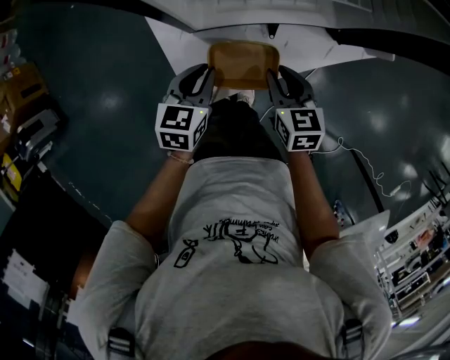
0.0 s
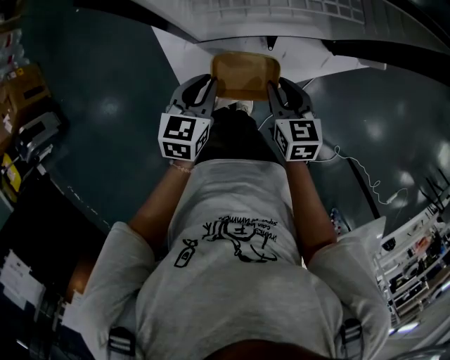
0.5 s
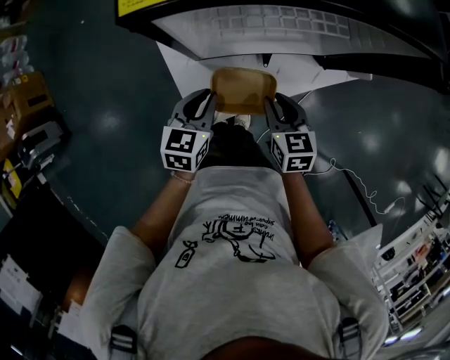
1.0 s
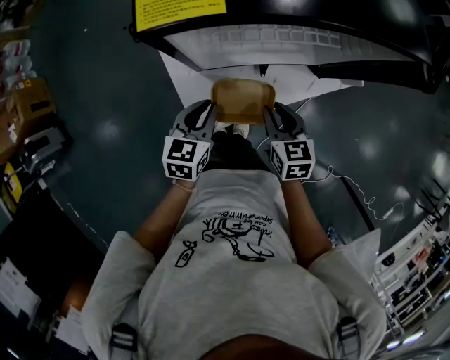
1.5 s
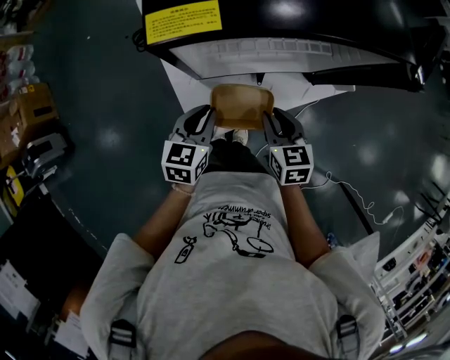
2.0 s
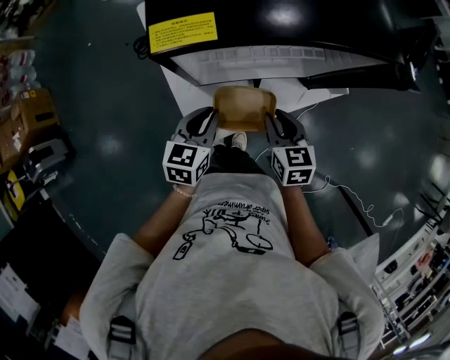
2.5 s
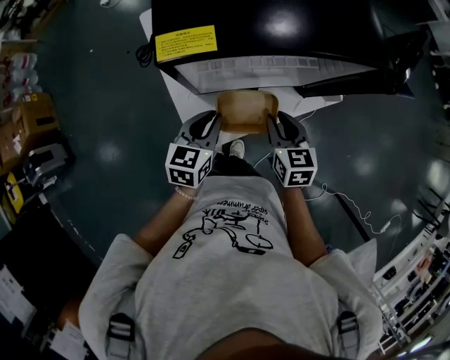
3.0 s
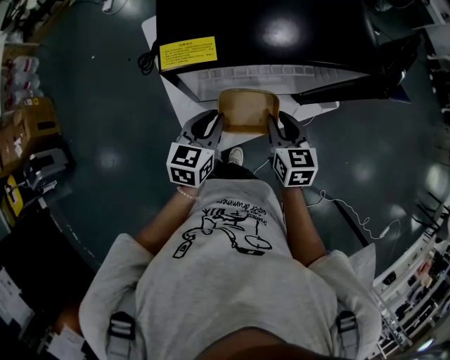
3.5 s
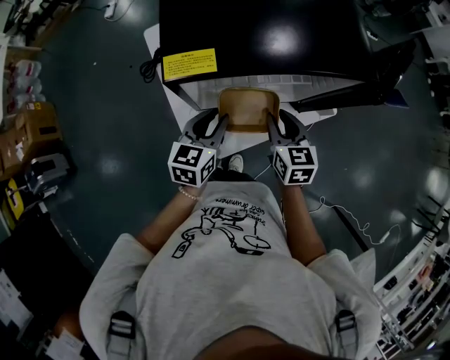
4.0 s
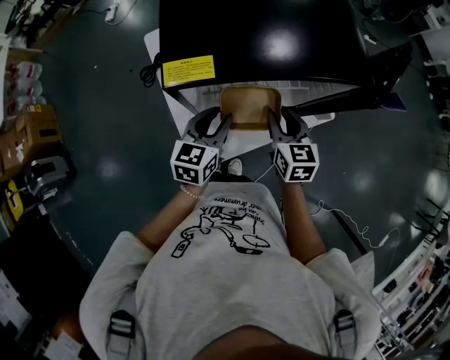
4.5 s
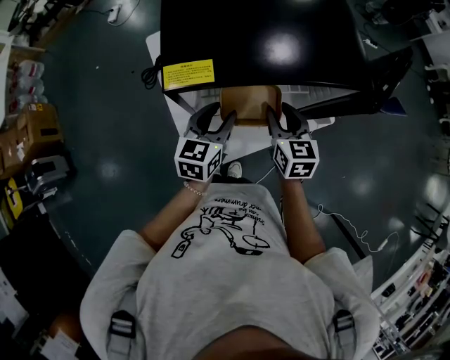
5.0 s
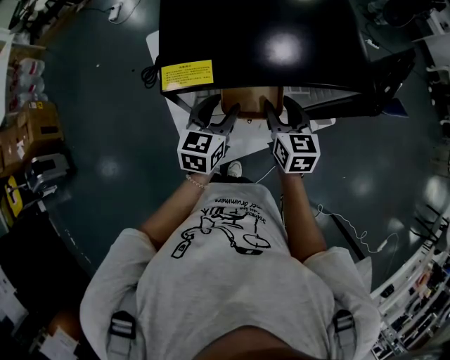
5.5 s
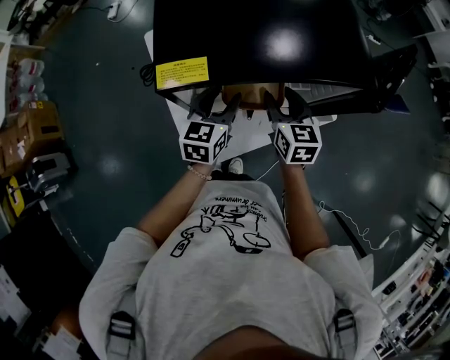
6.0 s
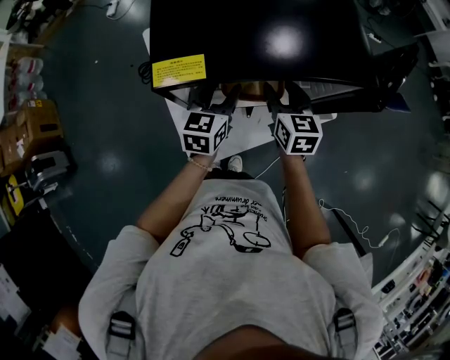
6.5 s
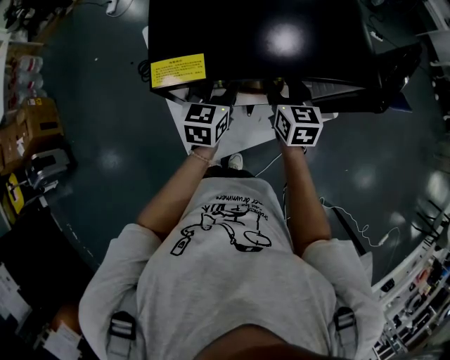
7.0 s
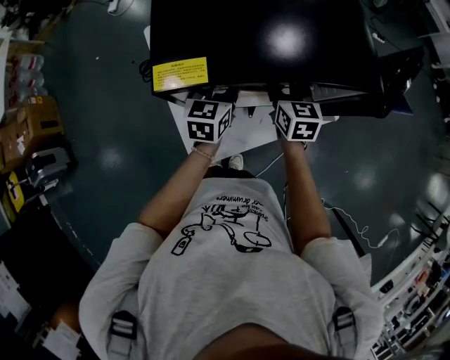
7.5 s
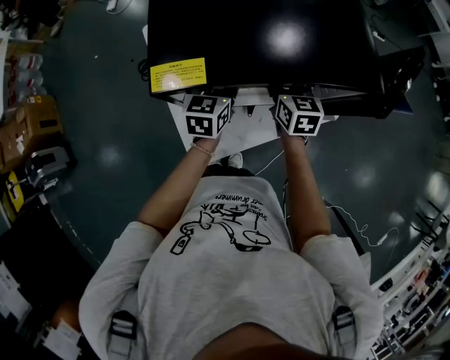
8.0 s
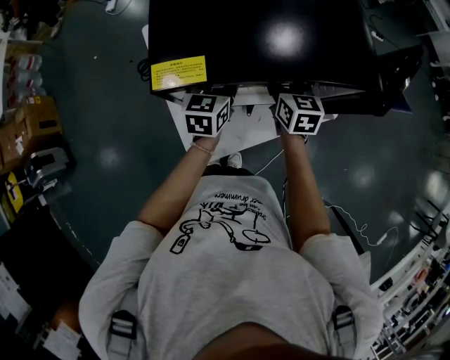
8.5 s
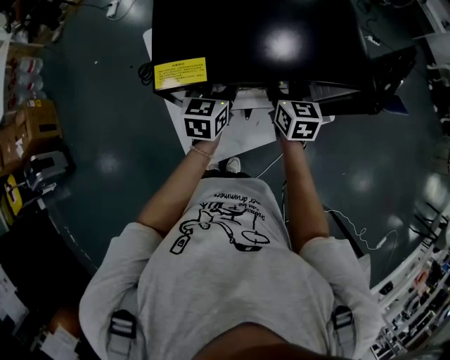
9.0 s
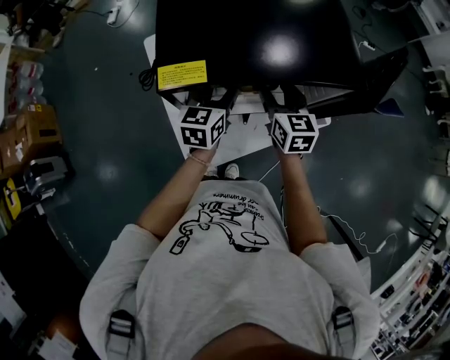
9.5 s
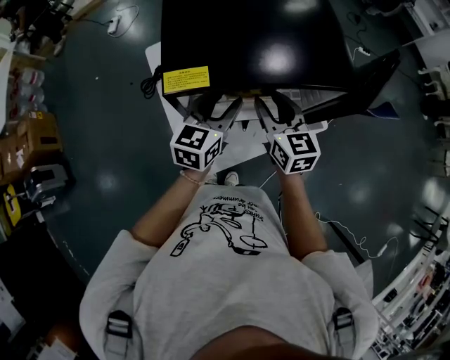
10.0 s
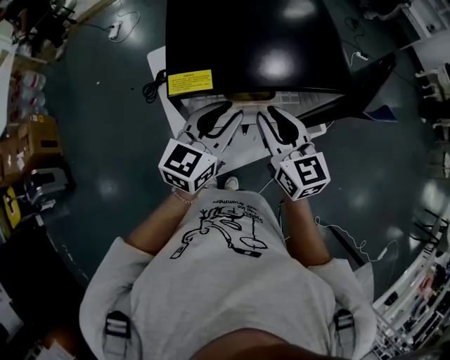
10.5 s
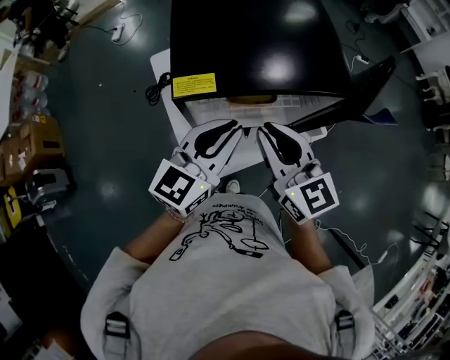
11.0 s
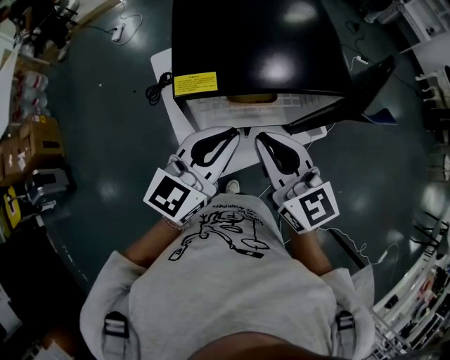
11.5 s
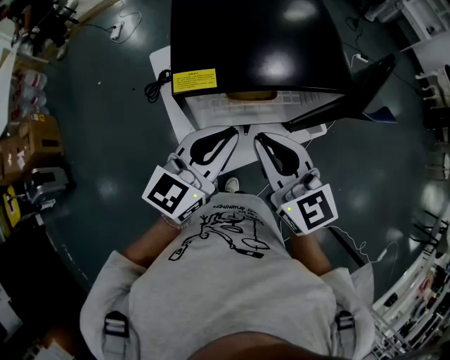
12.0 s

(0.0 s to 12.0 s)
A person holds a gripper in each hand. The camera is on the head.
0.0 s - 2.0 s: The grippers both shift upward by roughly 10 cm.
2.0 s - 4.0 s: The two grippers go about 10 cm upward and forward.
4.0 s - 6.0 s: The grippers both shift forward by roughly 10 cm. The right gripper opens up; the left gripper opens its fingers.
6.0 s - 8.0 s: Both grippers travel together forward, some 5 cm.
8.0 s - 10.0 s: Both grippers travel together upward and backward, approximately 10 cm.
10.0 s - 12.0 s: The right gripper goes about 15 cm backward and upward, and closes. Meanwhile the left gripper goes approximately 15 cm upward and backward, and closes up.

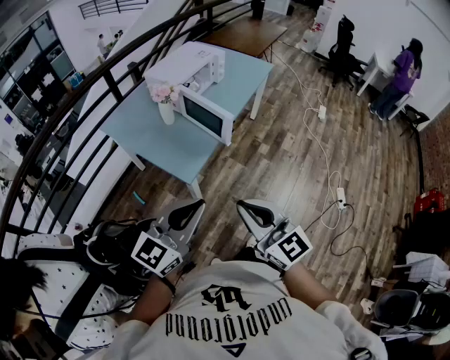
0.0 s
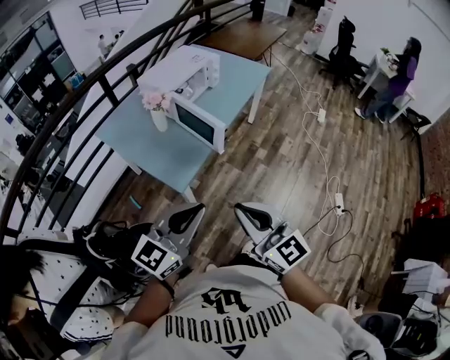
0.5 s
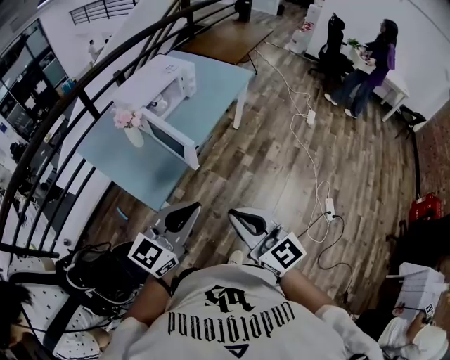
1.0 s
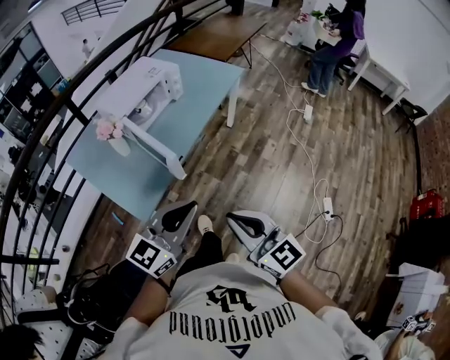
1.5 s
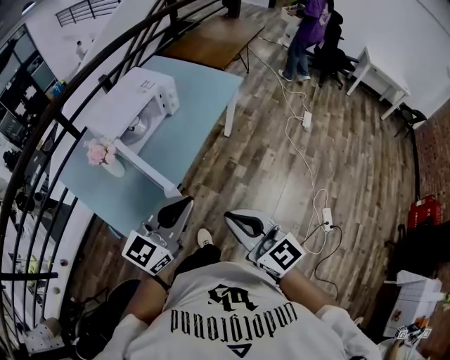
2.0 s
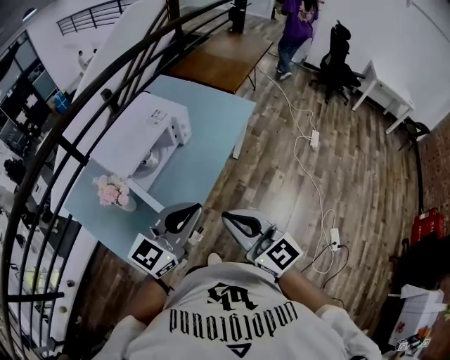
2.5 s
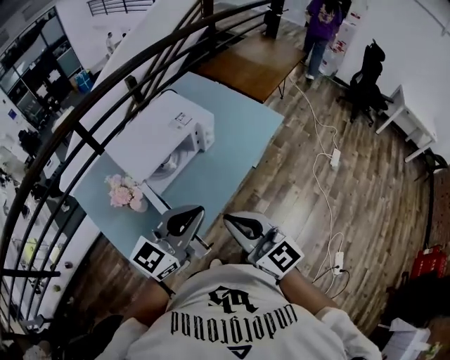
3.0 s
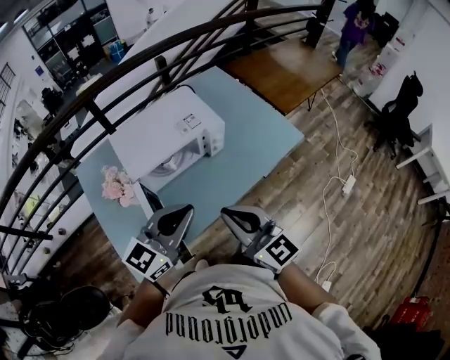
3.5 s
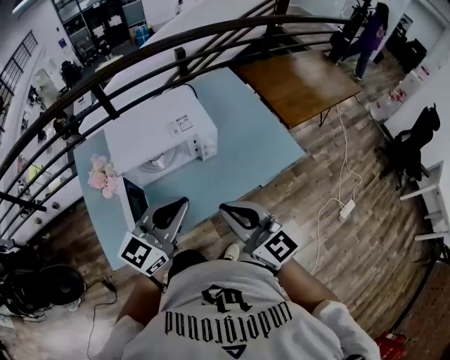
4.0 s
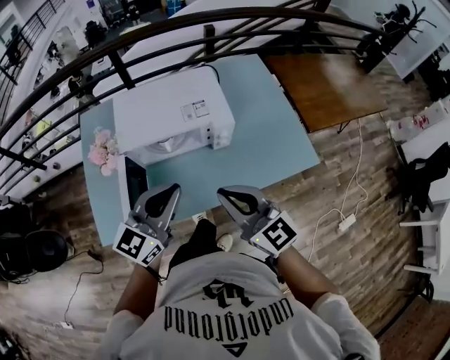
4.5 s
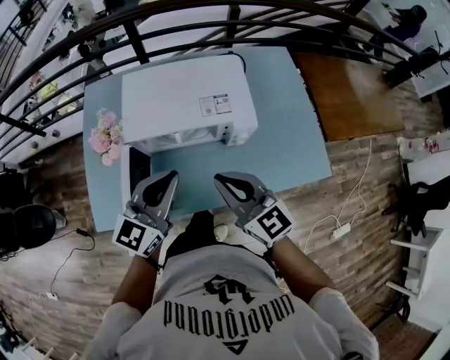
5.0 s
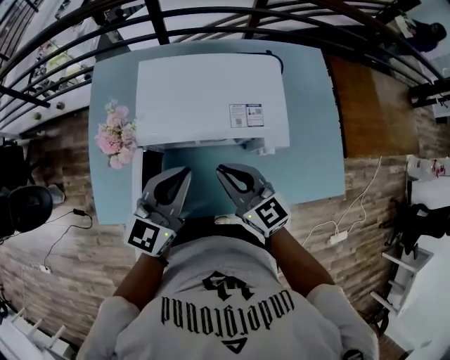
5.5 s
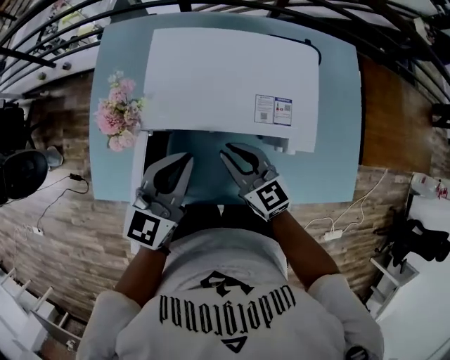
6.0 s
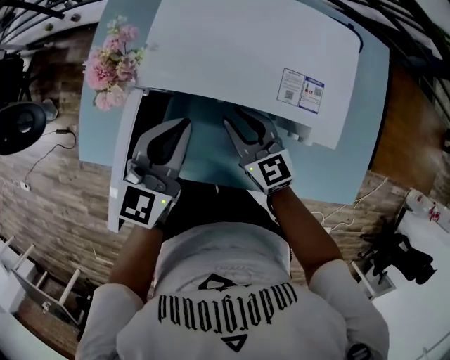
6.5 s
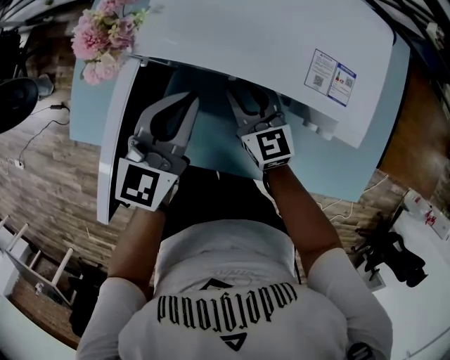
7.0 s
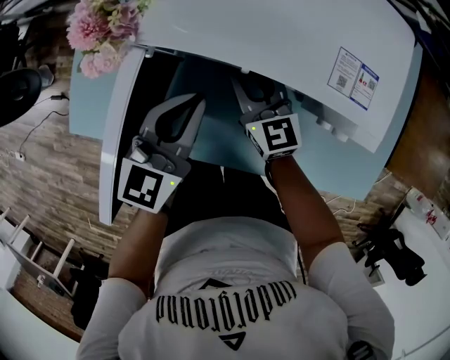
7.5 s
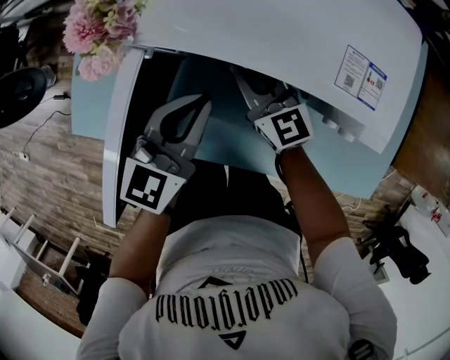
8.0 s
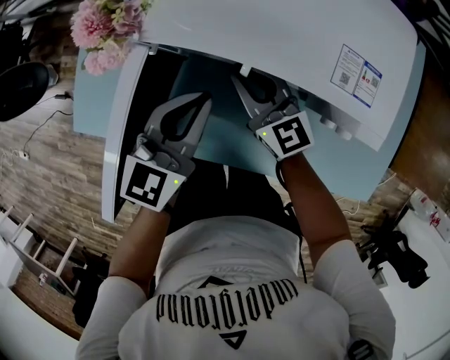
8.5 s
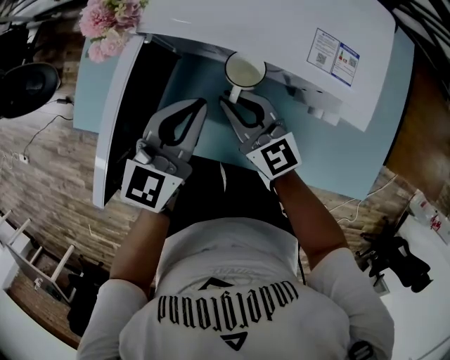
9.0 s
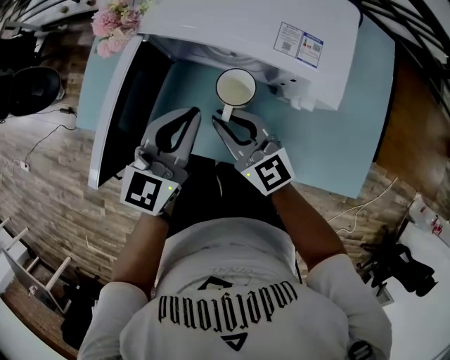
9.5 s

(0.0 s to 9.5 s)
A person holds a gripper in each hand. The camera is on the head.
0.0 s - 2.0 s: Both grippers travel together forward and to the right, some 35 cm.
2.0 s - 4.0 s: The right gripper moves about 40 cm, and rotates roughly 30 degrees. Meanwhile the left gripper changes place by some 35 cm, and swivels about 30 degrees.
4.0 s - 5.5 s: The right gripper moves approximately 30 cm, and rotates roughly 20 degrees. The left gripper changes place by some 20 cm, and changes its angle by approximately 30 degrees.
5.5 s - 7.5 s: The left gripper shifts approximately 15 cm downward, and turns by some 20 degrees; the right gripper moves downward and forward, some 20 cm, and opens its fingers.
7.5 s - 9.5 s: The left gripper travels backward and upward by approximately 10 cm. Meanwhile the right gripper shifts about 15 cm backward and upward.

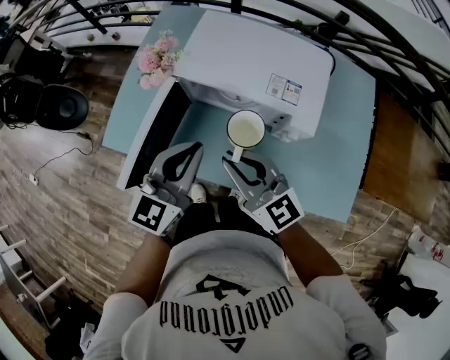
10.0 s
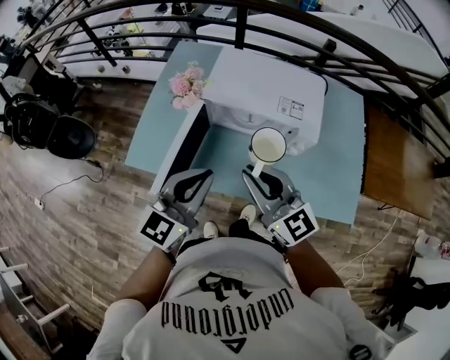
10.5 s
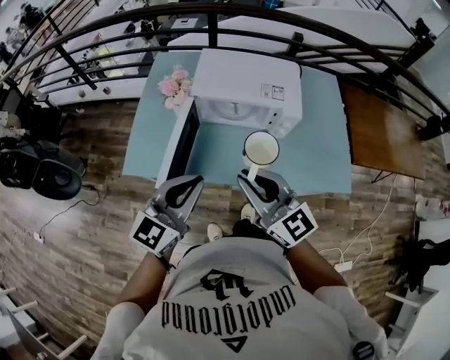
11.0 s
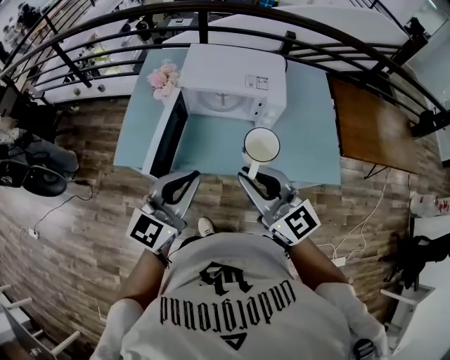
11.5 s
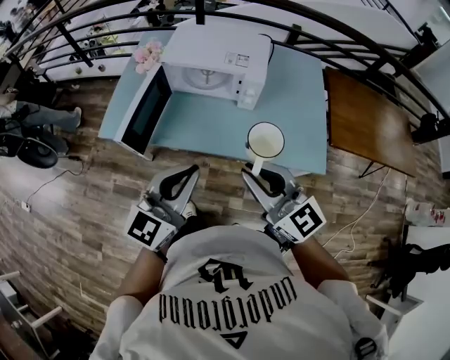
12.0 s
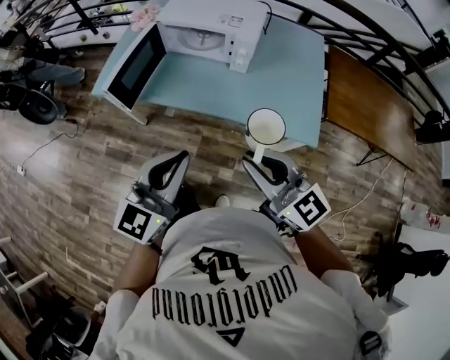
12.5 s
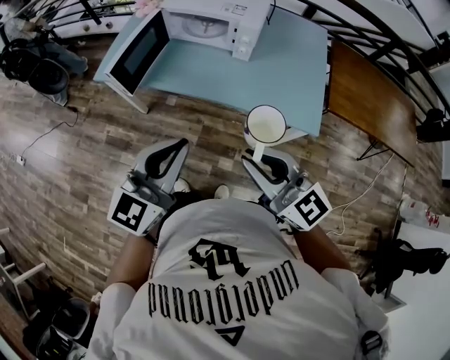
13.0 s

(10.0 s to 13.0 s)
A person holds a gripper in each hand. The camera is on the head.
10.0 s - 11.5 s: Both grippers move backward and upward, some 20 cm.
11.5 s - 13.0 s: The grippers both shift backward and to the right by roughly 25 cm.

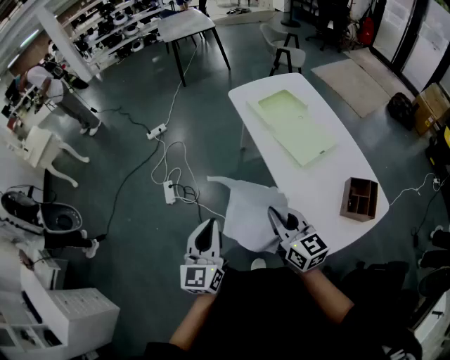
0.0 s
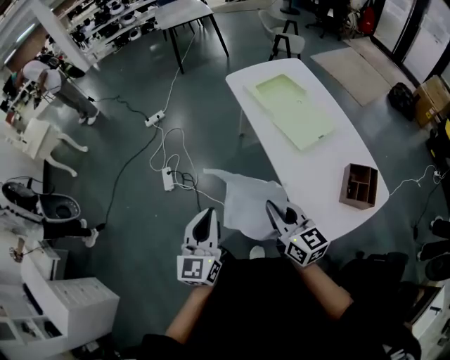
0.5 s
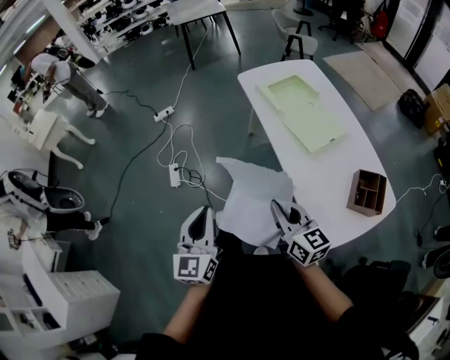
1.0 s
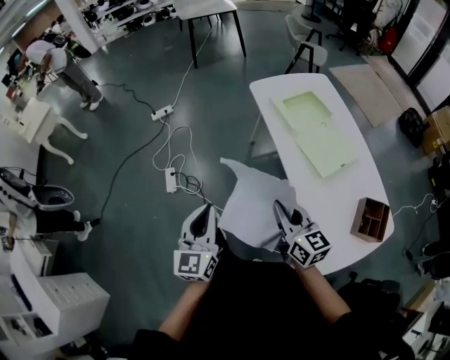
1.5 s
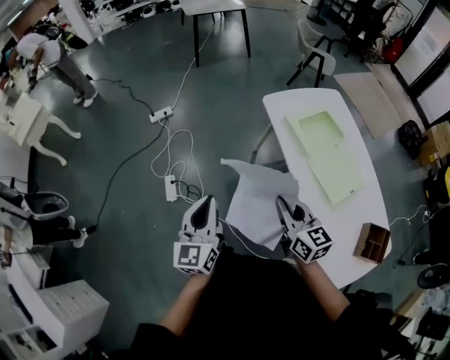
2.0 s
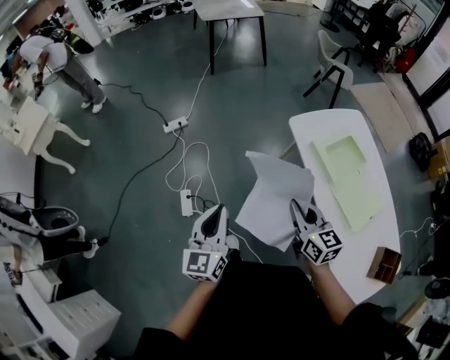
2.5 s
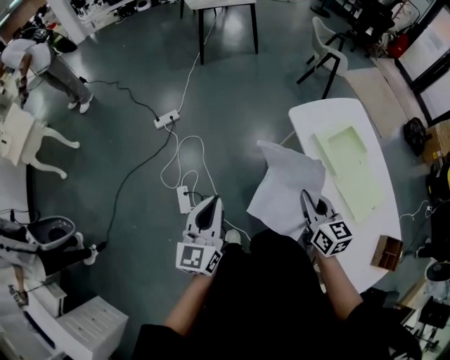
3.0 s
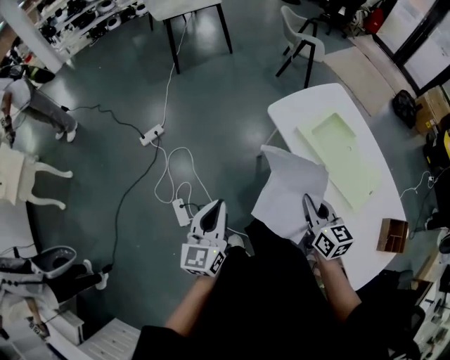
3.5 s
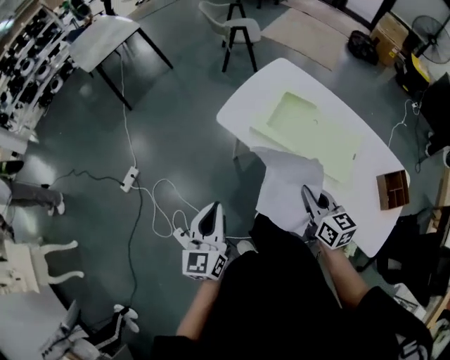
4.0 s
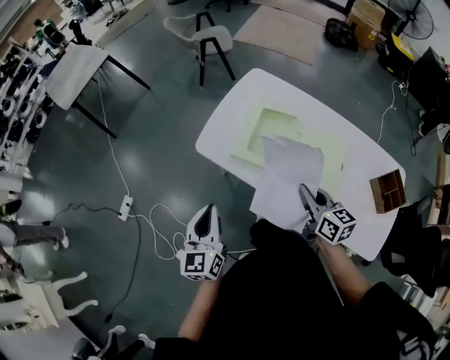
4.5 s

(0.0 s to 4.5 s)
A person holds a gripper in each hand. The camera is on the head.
0.0 s - 2.0 s: The right gripper heads forward, covering approximately 25 cm. The left gripper moves forward and to the left, about 30 cm.
2.0 s - 4.5 s: The left gripper changes place by approximately 35 cm, and swivels roughly 40 degrees. Meanwhile the right gripper shifts by approximately 30 cm, and changes its angle by roughly 50 degrees.
